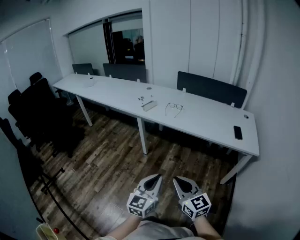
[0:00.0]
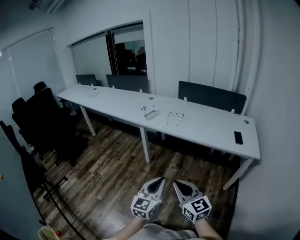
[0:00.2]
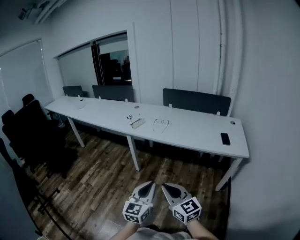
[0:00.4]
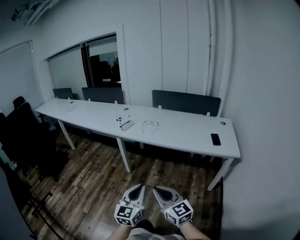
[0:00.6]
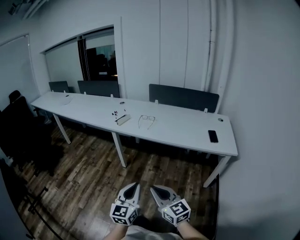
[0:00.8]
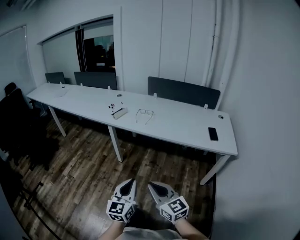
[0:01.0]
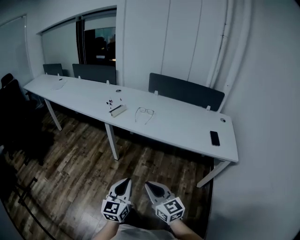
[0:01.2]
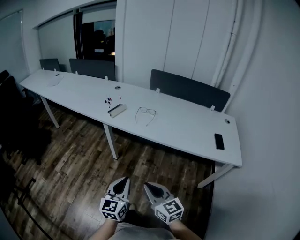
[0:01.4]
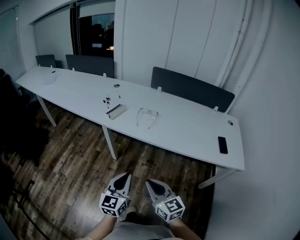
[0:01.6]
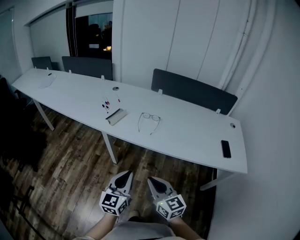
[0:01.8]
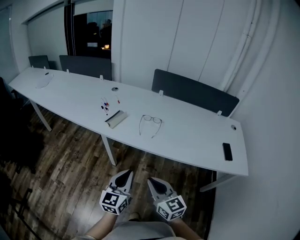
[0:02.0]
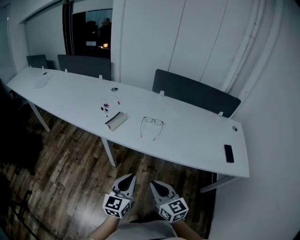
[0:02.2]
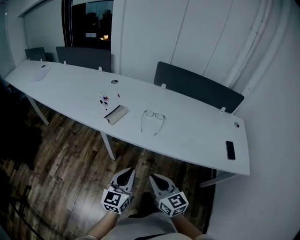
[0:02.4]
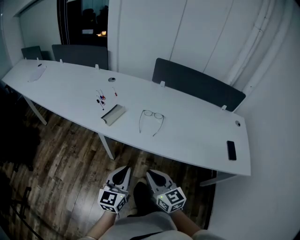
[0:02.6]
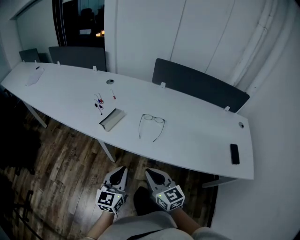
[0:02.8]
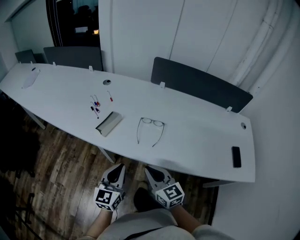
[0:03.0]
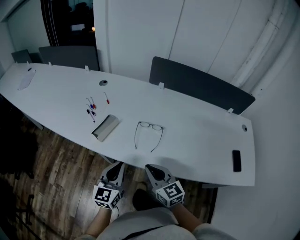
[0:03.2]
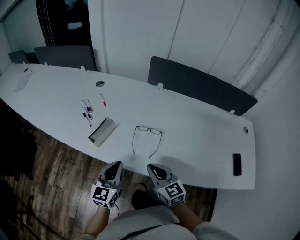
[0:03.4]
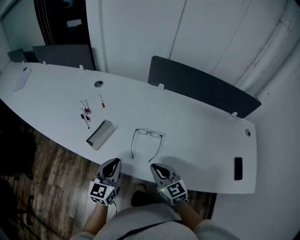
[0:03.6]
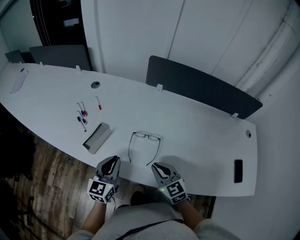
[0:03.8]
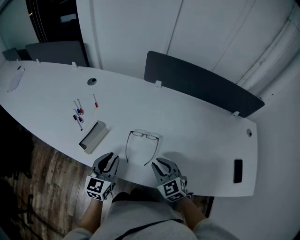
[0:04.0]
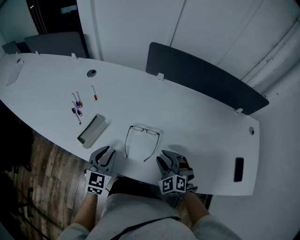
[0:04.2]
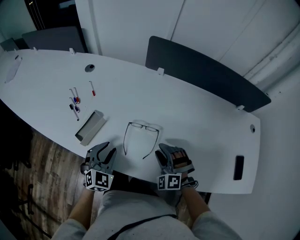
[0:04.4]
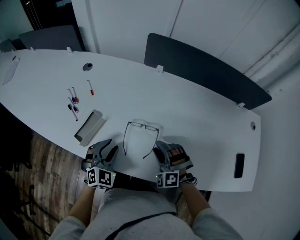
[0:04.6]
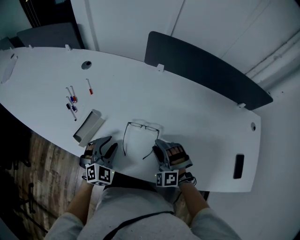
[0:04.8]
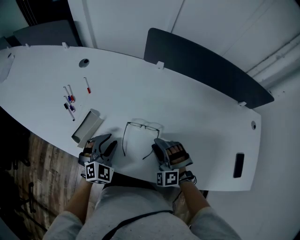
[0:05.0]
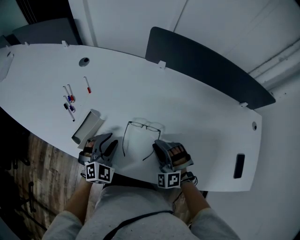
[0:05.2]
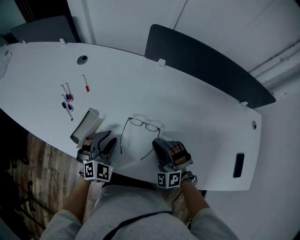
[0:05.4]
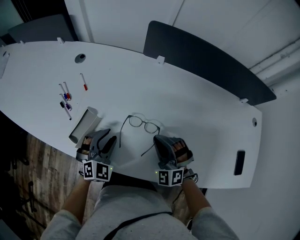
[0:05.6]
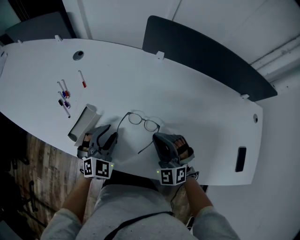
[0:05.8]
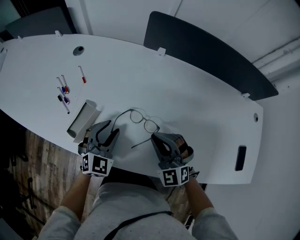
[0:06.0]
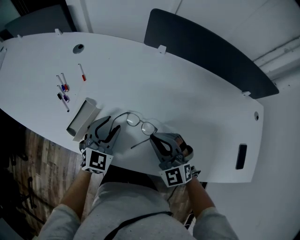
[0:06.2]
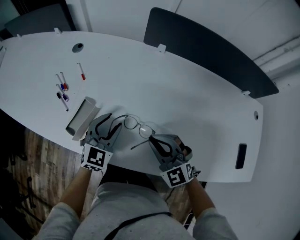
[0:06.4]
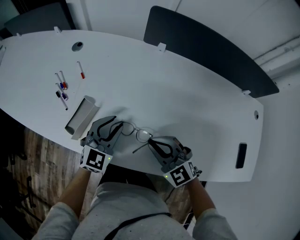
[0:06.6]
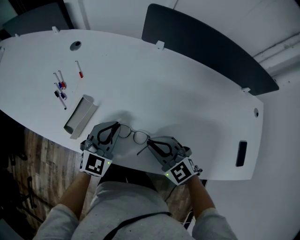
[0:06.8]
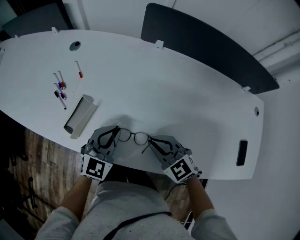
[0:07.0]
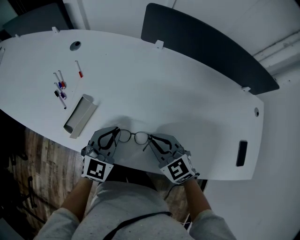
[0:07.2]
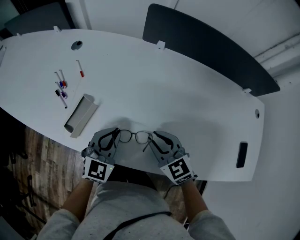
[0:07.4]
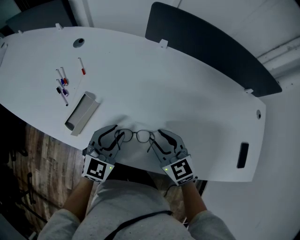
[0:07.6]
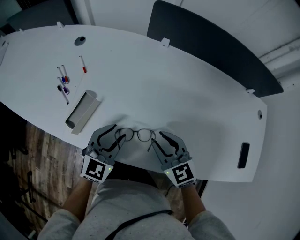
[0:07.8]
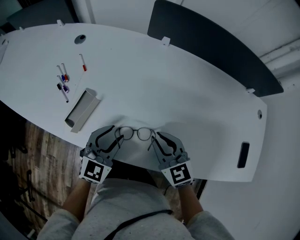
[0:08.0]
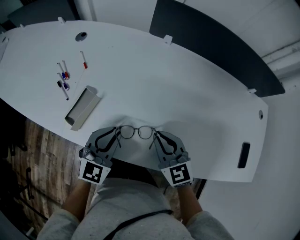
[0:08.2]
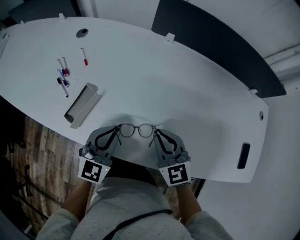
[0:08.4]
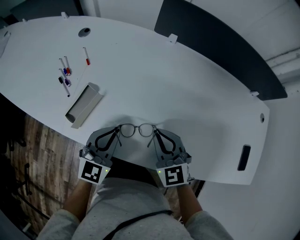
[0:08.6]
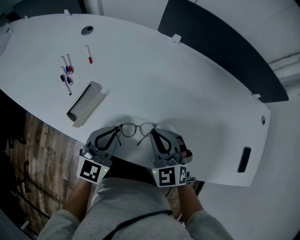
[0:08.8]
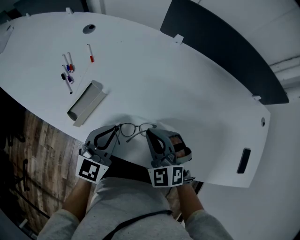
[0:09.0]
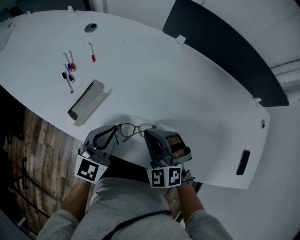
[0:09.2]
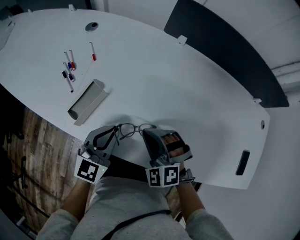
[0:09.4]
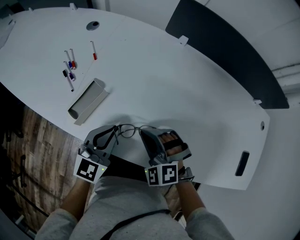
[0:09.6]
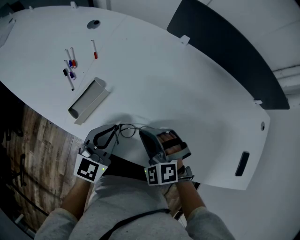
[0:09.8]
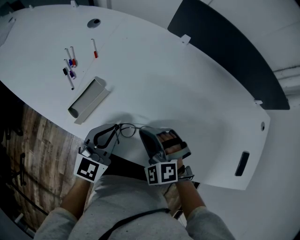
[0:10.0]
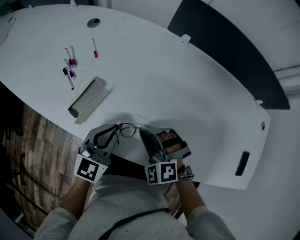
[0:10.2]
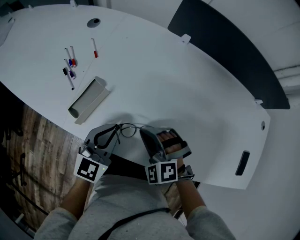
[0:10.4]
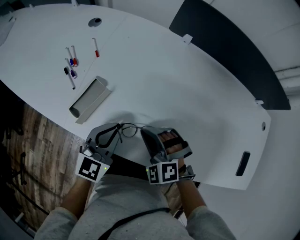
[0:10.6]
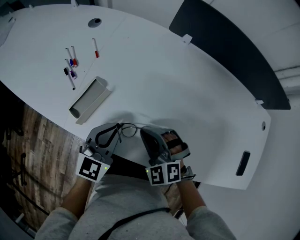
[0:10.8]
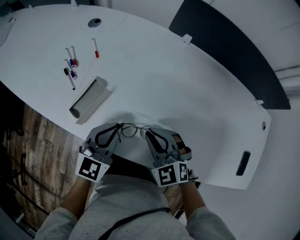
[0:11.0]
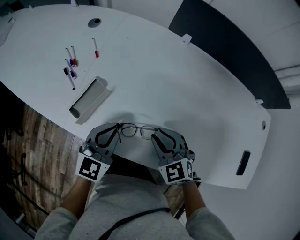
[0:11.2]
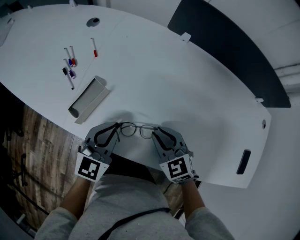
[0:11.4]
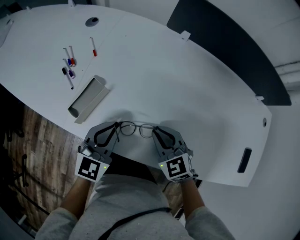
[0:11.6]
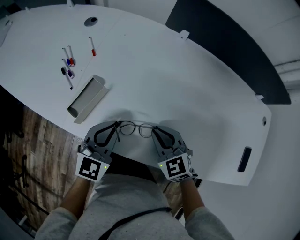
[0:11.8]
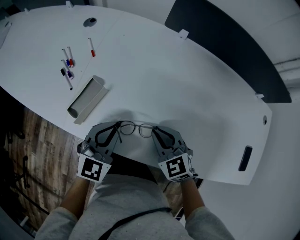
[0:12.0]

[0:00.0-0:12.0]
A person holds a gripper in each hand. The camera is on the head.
0:00.0 to 0:01.6: The grippers both shift forward by some 25 cm.
0:01.6 to 0:03.0: Both grippers travel together forward, about 30 cm.
0:03.0 to 0:04.4: The right gripper travels forward, to the right and downward by roughly 25 cm, twists about 70 degrees counterclockwise, seen from behind, and opens up; the left gripper goes roughly 25 cm forward and downward, changes its angle by some 50 degrees, and opens up.
0:04.4 to 0:06.0: The left gripper shifts about 5 cm forward. Meanwhile the right gripper is displaced upward by approximately 5 cm, rotates about 30 degrees, and closes its fingers.
0:06.0 to 0:07.6: The right gripper rotates approximately 40 degrees, and opens up.
0:07.6 to 0:09.0: The right gripper is displaced to the left by approximately 5 cm, changes its angle by about 40 degrees, and closes up.
0:09.0 to 0:10.4: The right gripper shifts by some 5 cm, and swivels some 20 degrees.
0:10.4 to 0:12.0: The right gripper twists about 40 degrees clockwise, seen from behind.

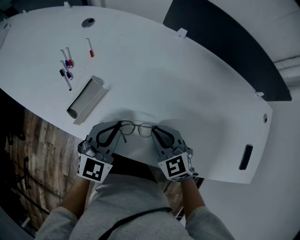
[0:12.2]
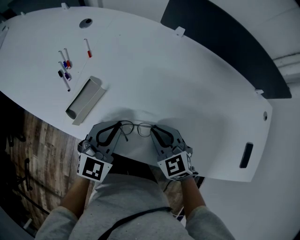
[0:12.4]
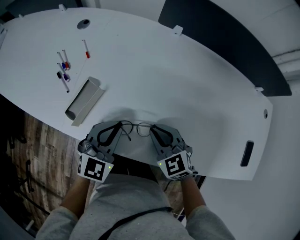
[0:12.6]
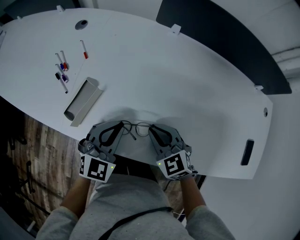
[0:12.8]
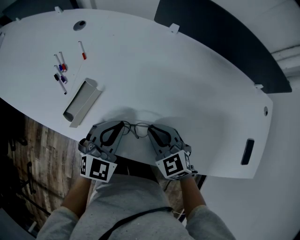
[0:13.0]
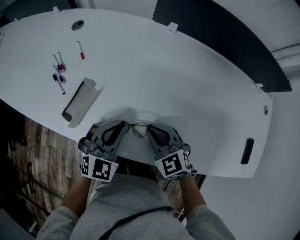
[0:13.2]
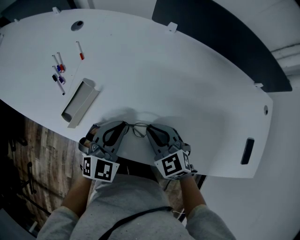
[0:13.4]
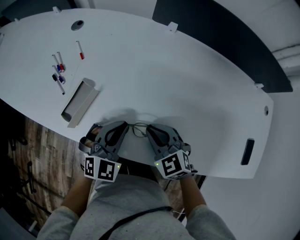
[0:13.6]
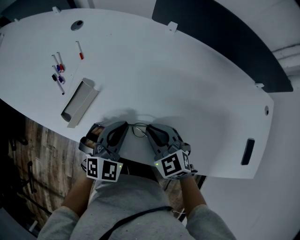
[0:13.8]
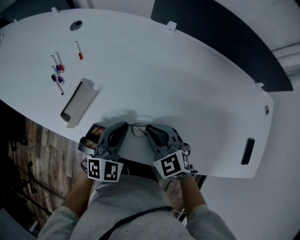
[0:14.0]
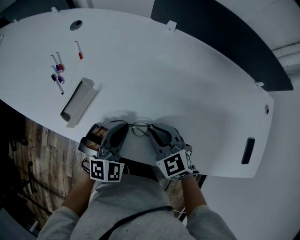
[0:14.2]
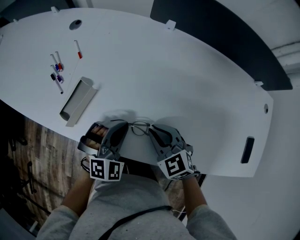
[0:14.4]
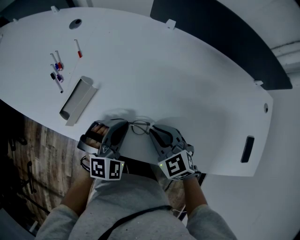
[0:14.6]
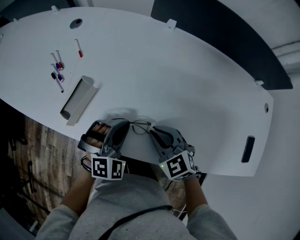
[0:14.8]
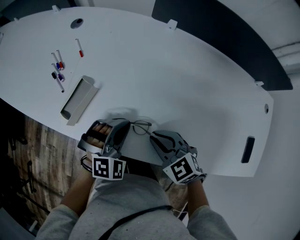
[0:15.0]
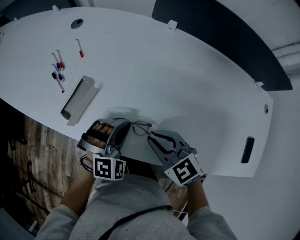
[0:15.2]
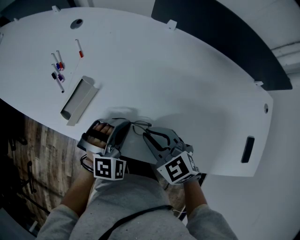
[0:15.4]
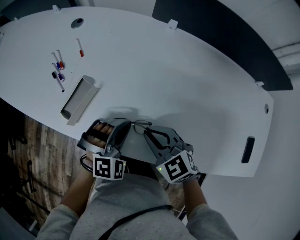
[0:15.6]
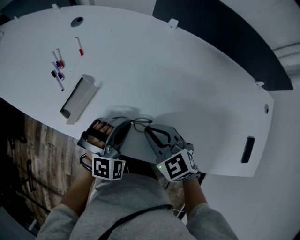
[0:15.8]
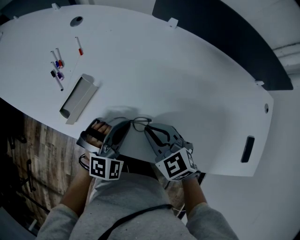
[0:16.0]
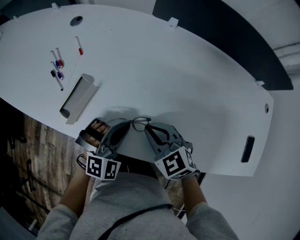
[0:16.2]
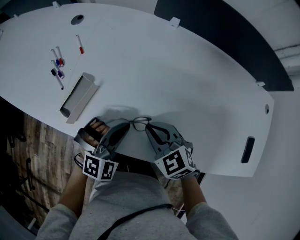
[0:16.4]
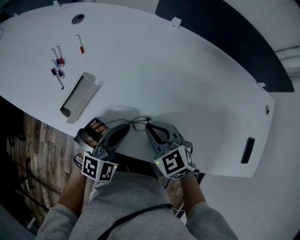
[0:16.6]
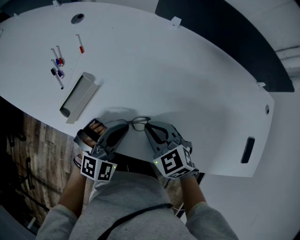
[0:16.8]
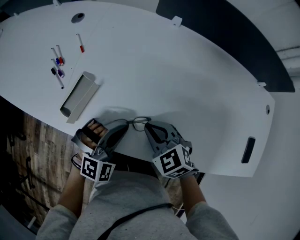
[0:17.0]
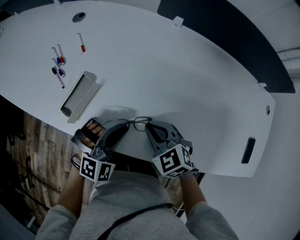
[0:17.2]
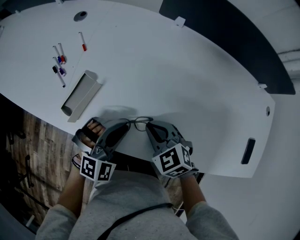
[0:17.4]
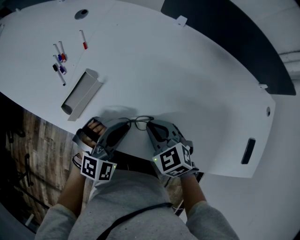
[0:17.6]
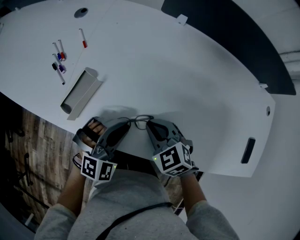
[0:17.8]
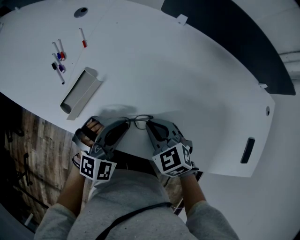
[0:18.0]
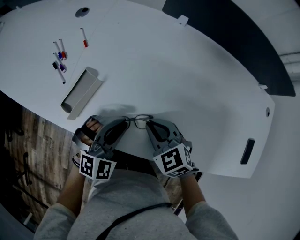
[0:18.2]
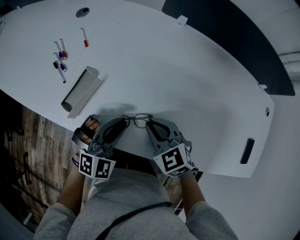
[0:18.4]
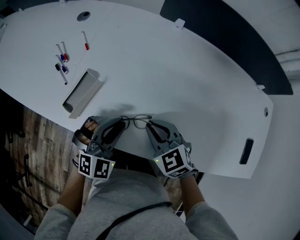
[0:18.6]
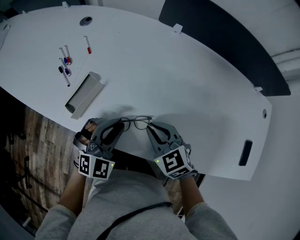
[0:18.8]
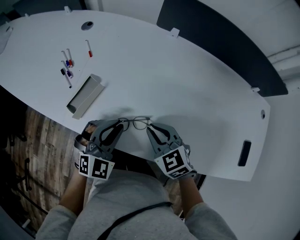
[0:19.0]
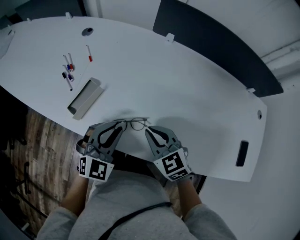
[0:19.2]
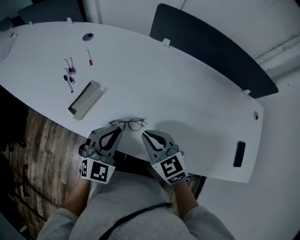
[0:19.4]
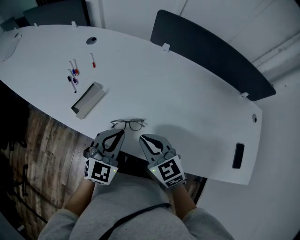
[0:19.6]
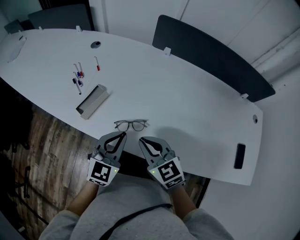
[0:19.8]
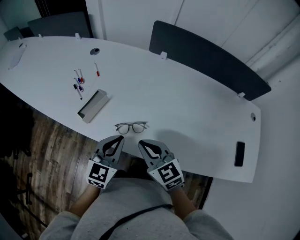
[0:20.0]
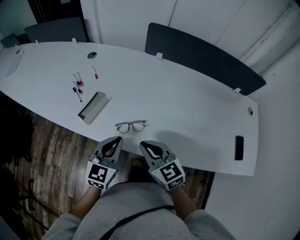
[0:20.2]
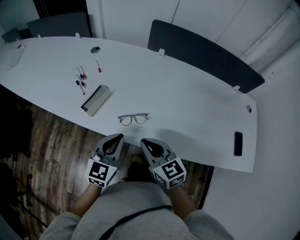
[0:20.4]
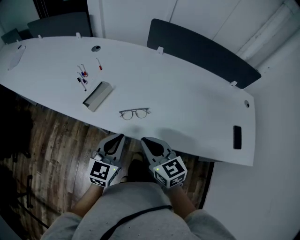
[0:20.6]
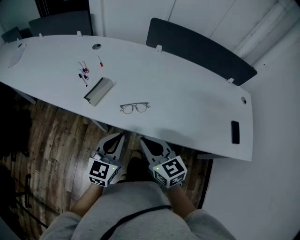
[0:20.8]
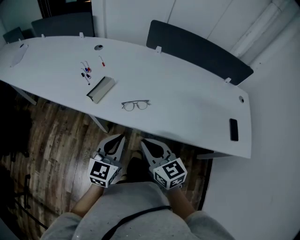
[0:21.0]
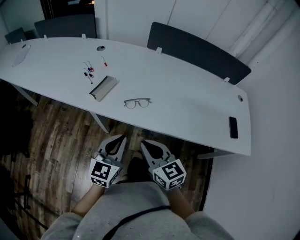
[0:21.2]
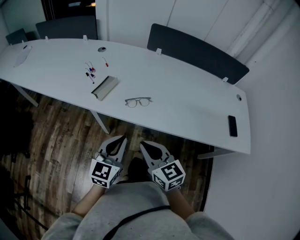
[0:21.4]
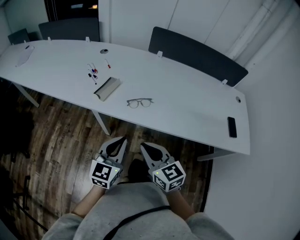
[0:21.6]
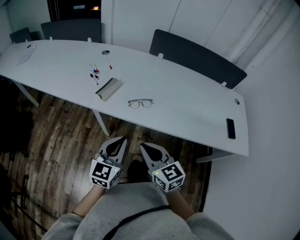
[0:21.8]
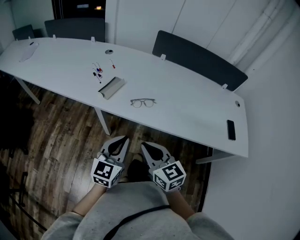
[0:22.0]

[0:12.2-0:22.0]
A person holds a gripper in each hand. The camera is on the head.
0:12.2 to 0:13.6: The left gripper shifts by approximately 5 cm.
0:13.6 to 0:15.0: The left gripper changes its angle by about 20 degrees.
0:15.0 to 0:17.8: The grippers make only small movements.
0:17.8 to 0:19.2: The two grippers go about 5 cm upward. The left gripper swivels about 20 degrees.
0:19.2 to 0:20.6: The left gripper goes some 15 cm backward, and rotates approximately 30 degrees; the right gripper shifts roughly 15 cm backward and upward, and changes its angle by some 20 degrees.
0:20.6 to 0:22.0: The right gripper is displaced backward and to the left by some 15 cm; the left gripper goes approximately 15 cm backward.

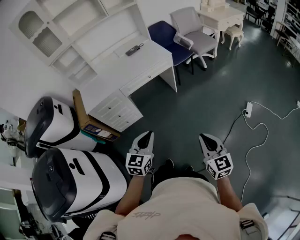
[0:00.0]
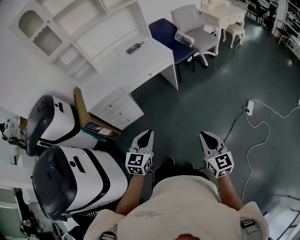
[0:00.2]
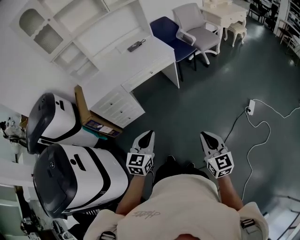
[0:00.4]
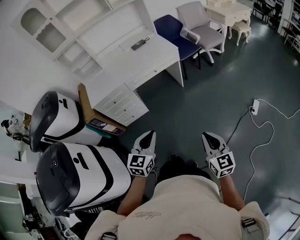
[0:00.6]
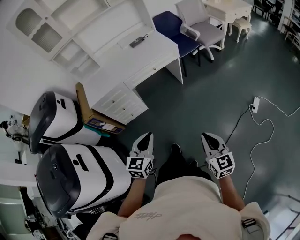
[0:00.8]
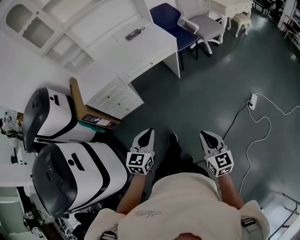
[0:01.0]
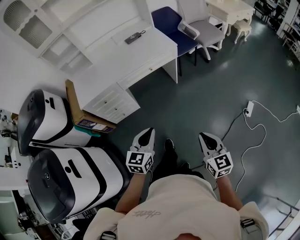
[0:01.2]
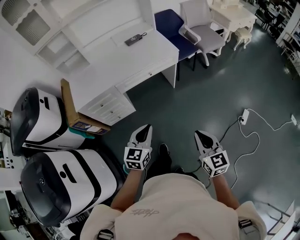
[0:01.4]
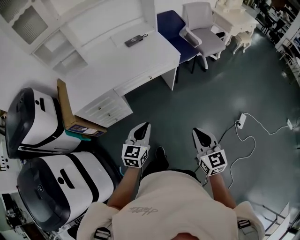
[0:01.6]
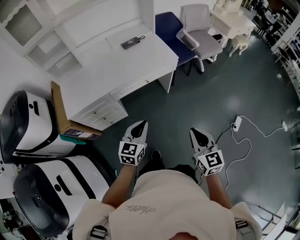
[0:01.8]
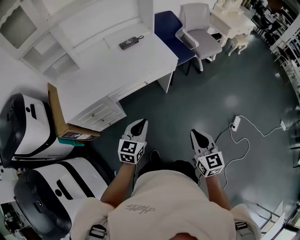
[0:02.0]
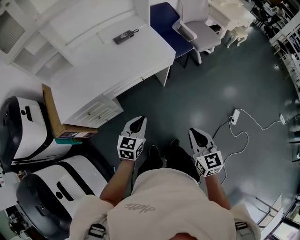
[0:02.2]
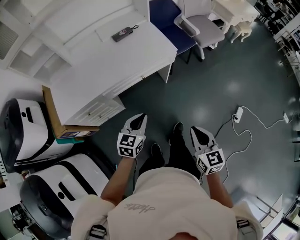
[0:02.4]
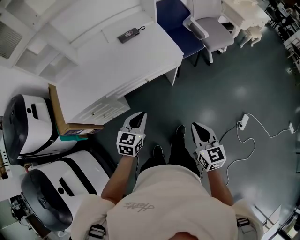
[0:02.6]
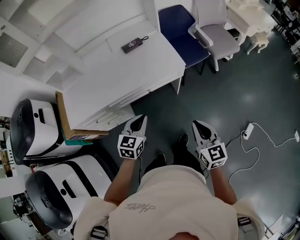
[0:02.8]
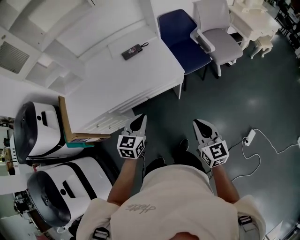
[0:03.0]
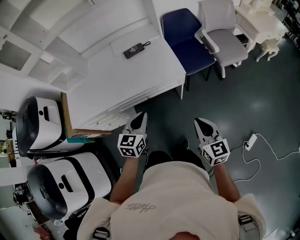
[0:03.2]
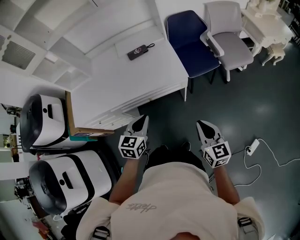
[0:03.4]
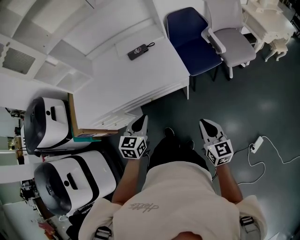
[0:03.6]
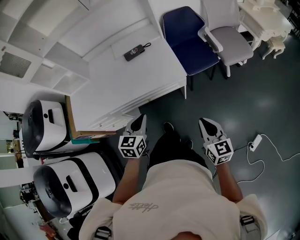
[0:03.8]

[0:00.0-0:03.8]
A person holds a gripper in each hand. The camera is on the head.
0:00.0 to 0:01.2: Both grippers move forward, some 10 cm.
0:01.2 to 0:02.6: Both grippers travel together forward, some 30 cm.
0:02.6 to 0:03.8: The two grippers go approximately 20 cm forward and to the right.
